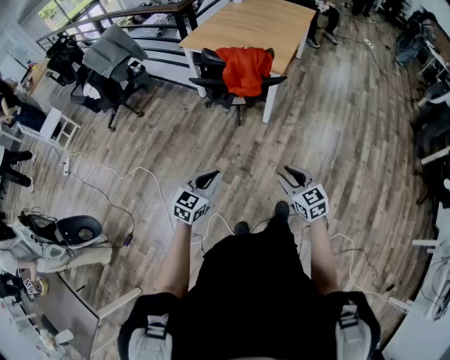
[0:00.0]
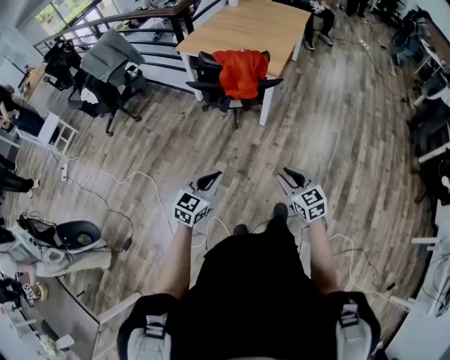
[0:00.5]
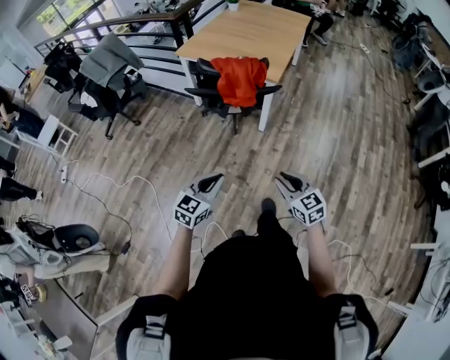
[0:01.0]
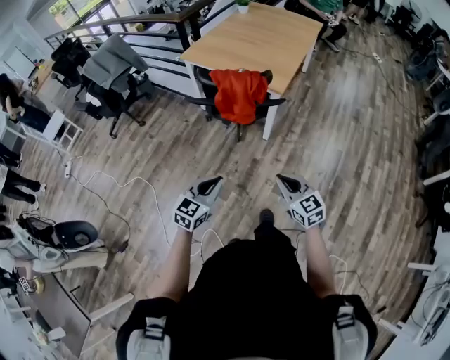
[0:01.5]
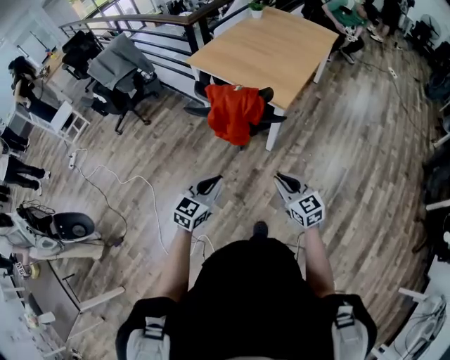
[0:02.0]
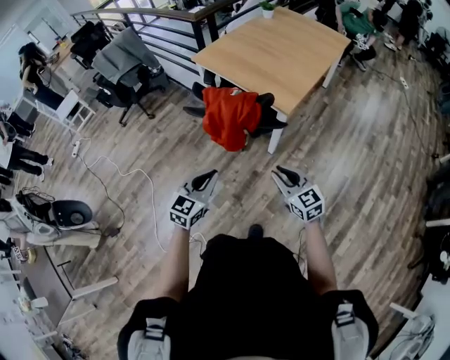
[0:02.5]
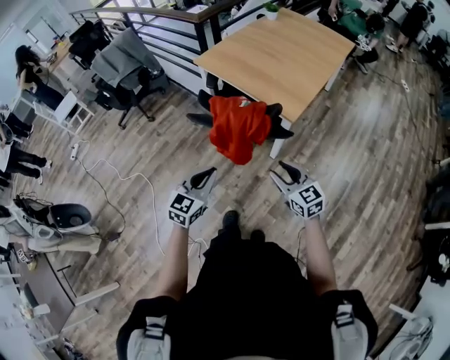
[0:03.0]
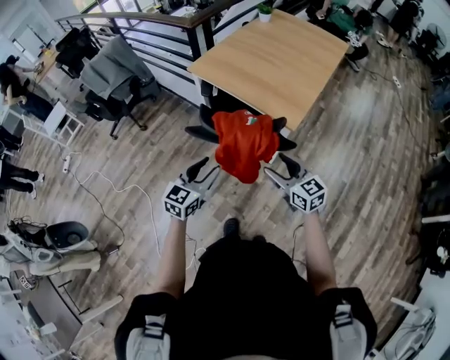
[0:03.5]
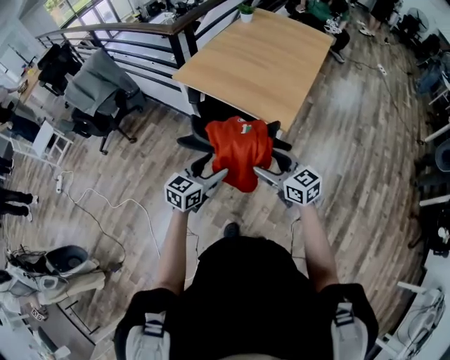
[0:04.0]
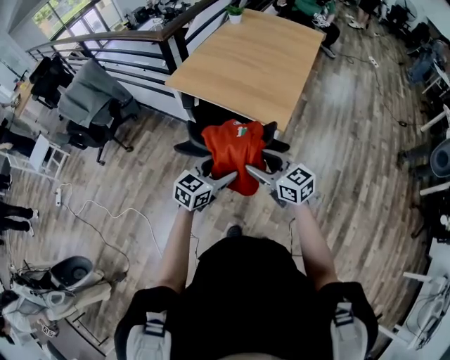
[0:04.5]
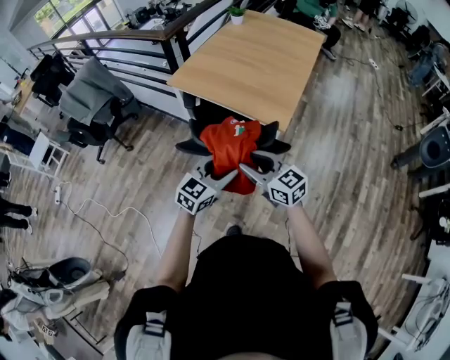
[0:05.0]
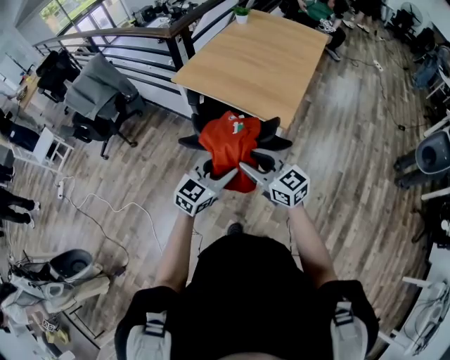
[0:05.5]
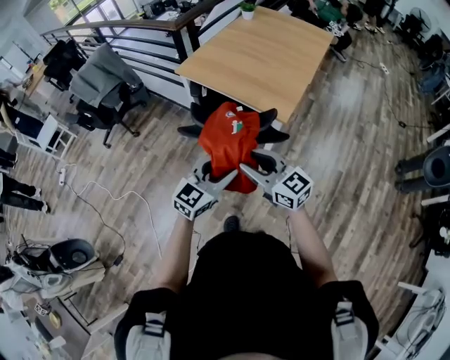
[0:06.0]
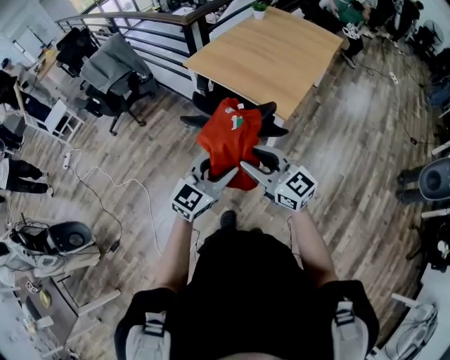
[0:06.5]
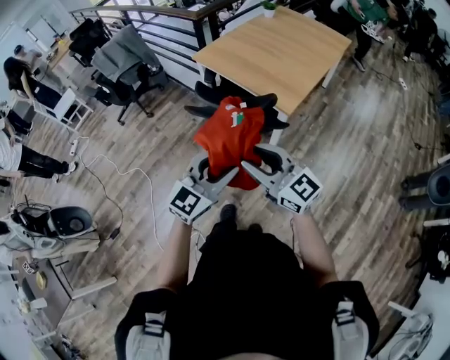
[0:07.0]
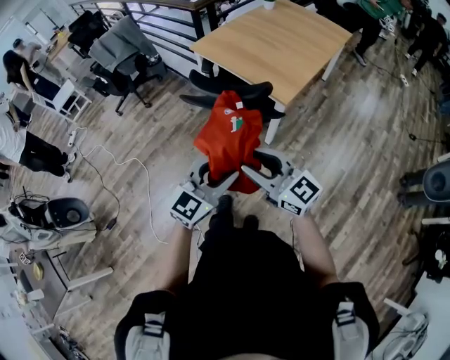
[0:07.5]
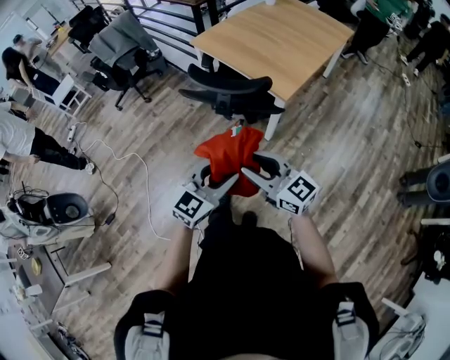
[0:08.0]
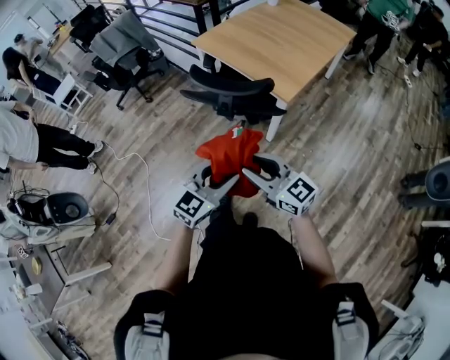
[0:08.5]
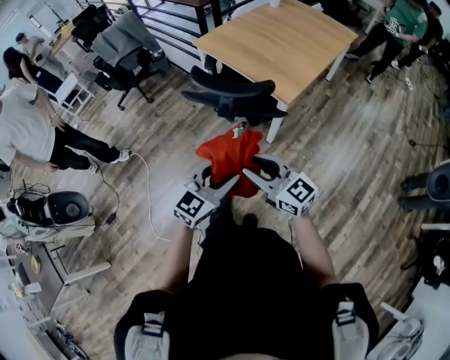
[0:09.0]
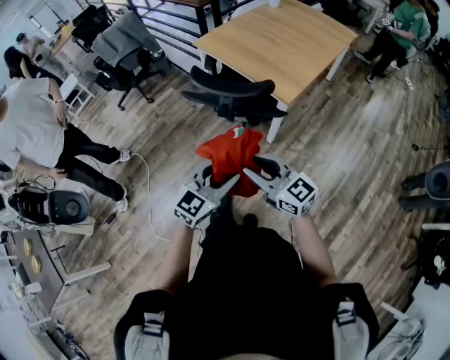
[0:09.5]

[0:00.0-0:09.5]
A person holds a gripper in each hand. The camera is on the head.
0:00.0 to 0:02.0: The left gripper is displaced forward and to the right by roughly 20 cm. The right gripper travels forward by about 20 cm.
0:02.0 to 0:04.0: Both grippers travel together forward, roughly 25 cm. The right gripper opens up. The left gripper opens up.
0:04.0 to 0:05.5: The right gripper shifts some 5 cm to the left, and closes. The left gripper shifts by some 5 cm.
0:05.5 to 0:07.5: Both grippers move backward, some 20 cm.
0:07.5 to 0:09.5: The right gripper heads downward, covering about 5 cm.

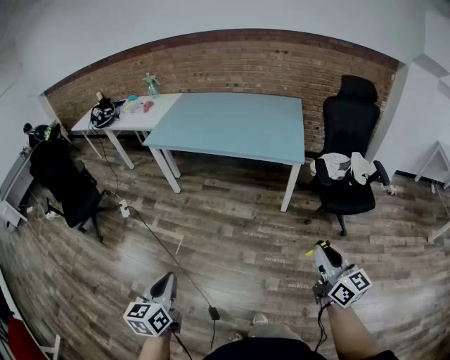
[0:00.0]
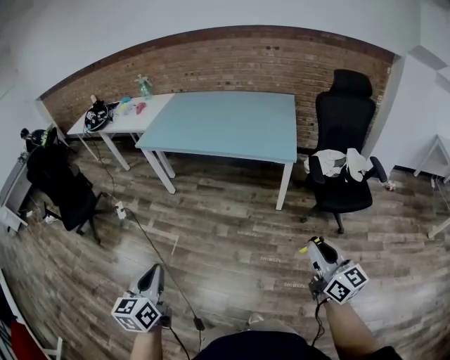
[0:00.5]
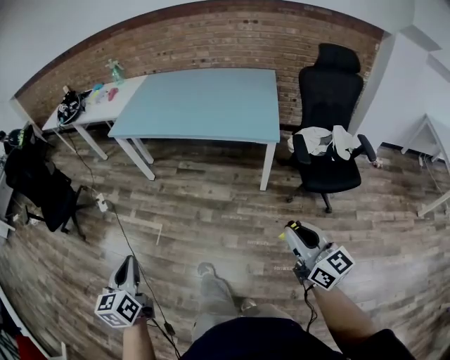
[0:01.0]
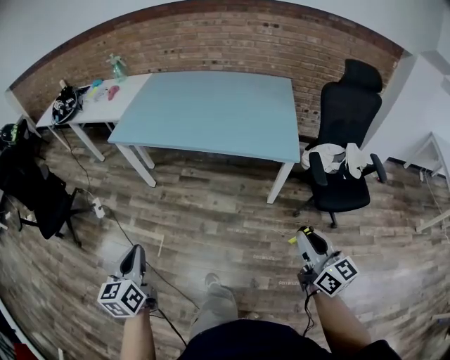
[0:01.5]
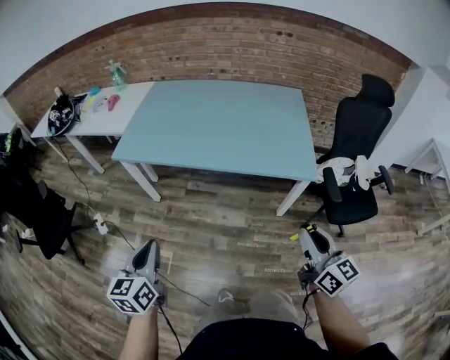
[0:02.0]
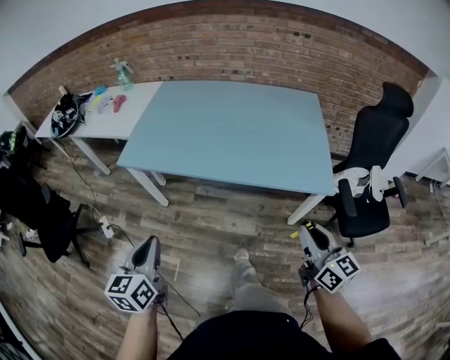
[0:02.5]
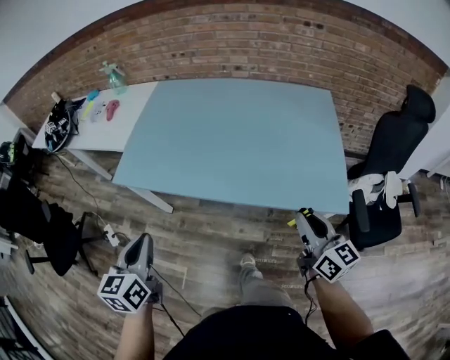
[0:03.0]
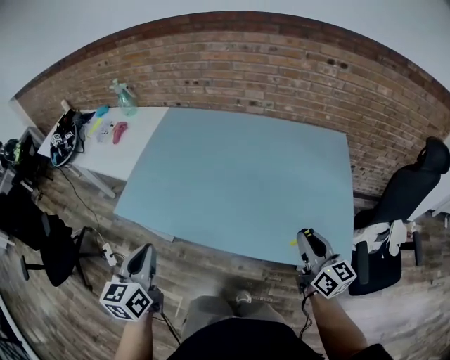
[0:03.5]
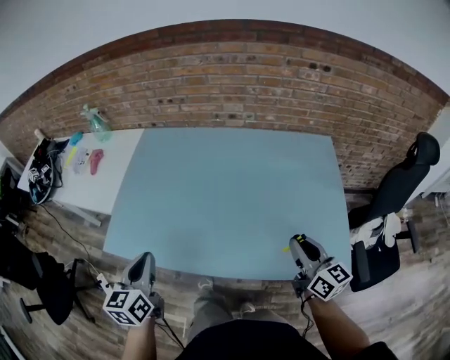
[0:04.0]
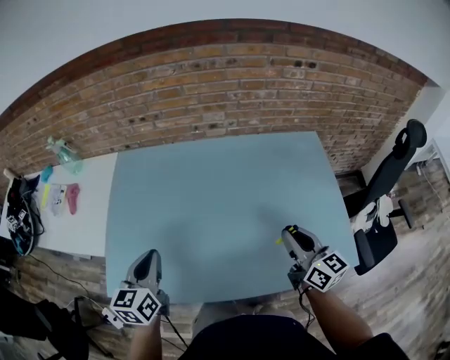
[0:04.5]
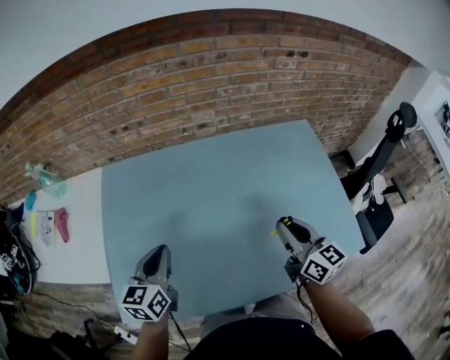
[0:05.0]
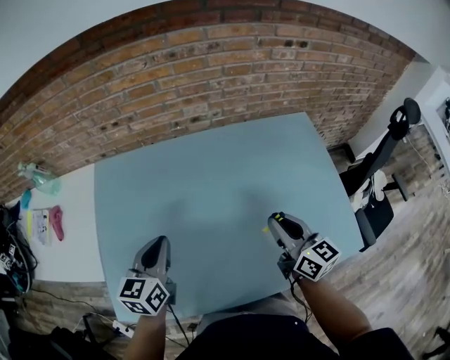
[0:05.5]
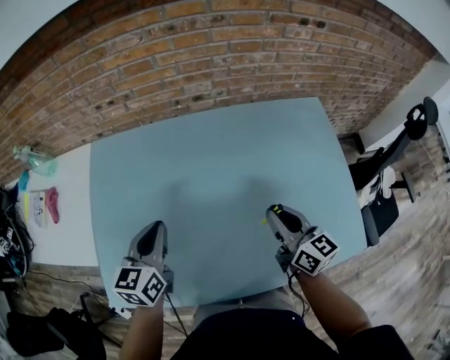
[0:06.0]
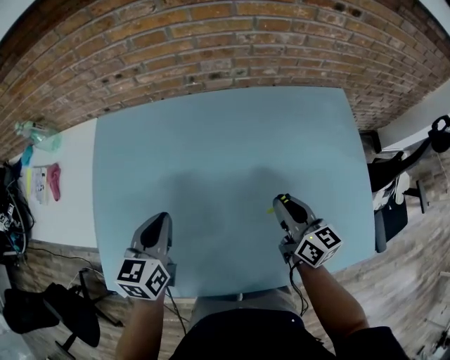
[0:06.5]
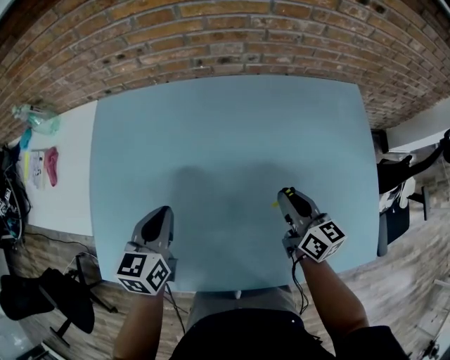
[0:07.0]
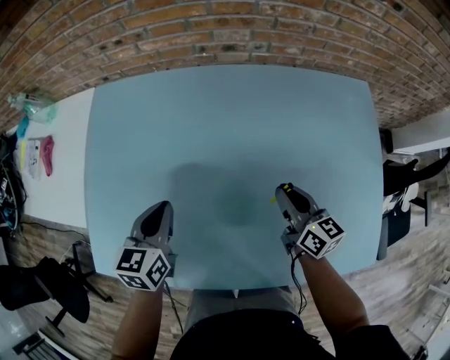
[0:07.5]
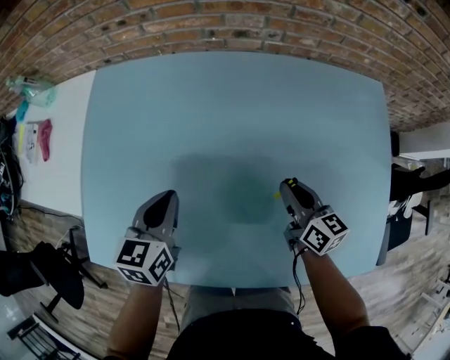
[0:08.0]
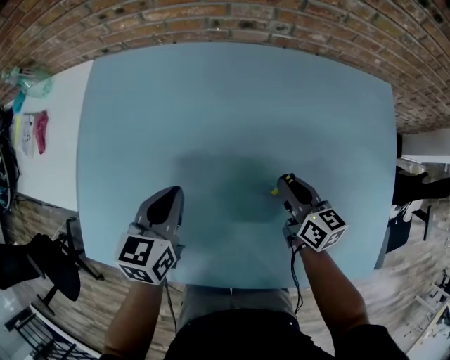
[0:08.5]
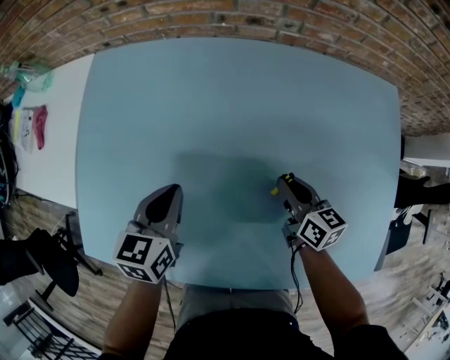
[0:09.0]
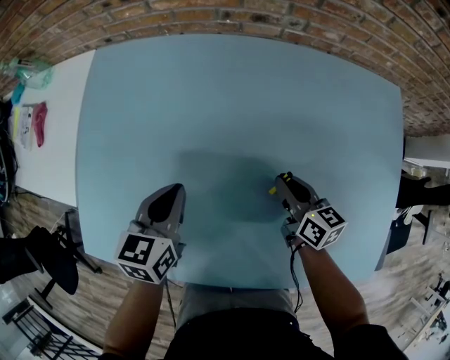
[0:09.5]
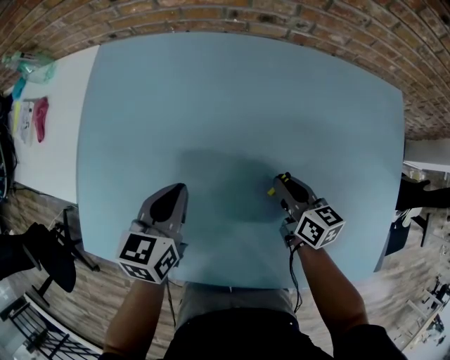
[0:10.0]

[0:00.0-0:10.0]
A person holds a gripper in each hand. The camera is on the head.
0:00.0 to 0:02.0: The grippers both shift forward by some 35 cm.
0:02.0 to 0:04.0: The pair of grippers is taken forward, approximately 50 cm.
0:04.0 to 0:06.0: The right gripper moves forward and to the left, some 20 cm. Meanwhile the left gripper is displaced forward by approximately 30 cm, and swivels roughly 20 degrees.
0:06.0 to 0:08.0: The left gripper shifts some 10 cm downward; the right gripper moves downward and forward, roughly 15 cm.
0:08.0 to 0:10.0: The right gripper moves some 5 cm.

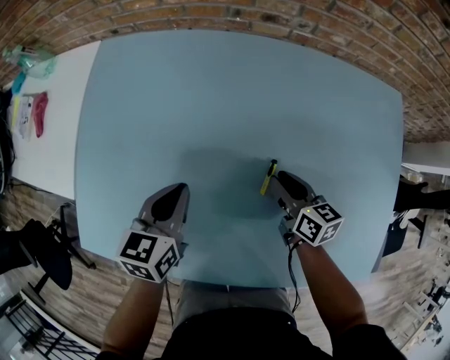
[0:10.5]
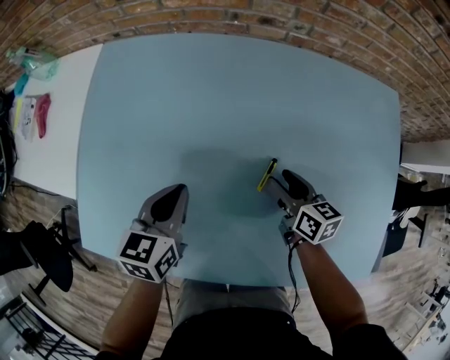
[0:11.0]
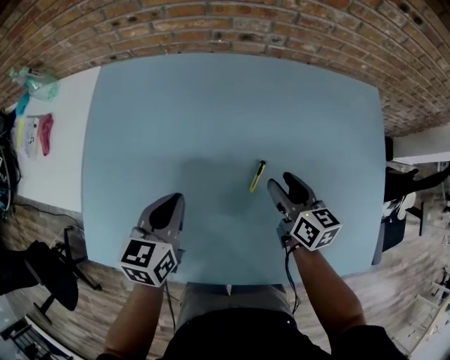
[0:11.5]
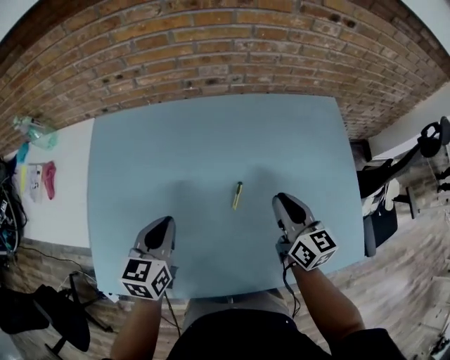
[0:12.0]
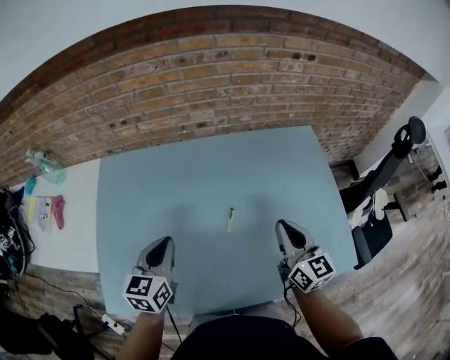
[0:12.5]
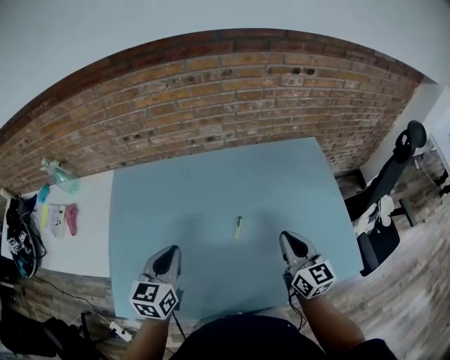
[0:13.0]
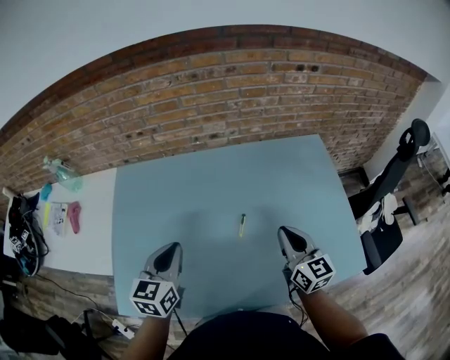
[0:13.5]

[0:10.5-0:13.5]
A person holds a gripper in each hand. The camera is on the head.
0:10.5 to 0:12.0: The left gripper travels upward by about 10 cm, while the right gripper is displaced upward by approximately 15 cm, swivels about 30 degrees, and opens, then closes again.
0:12.0 to 0:13.5: The right gripper shifts roughly 10 cm backward and upward; the left gripper moves upward, about 10 cm.

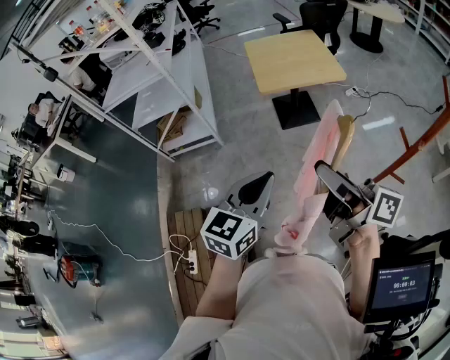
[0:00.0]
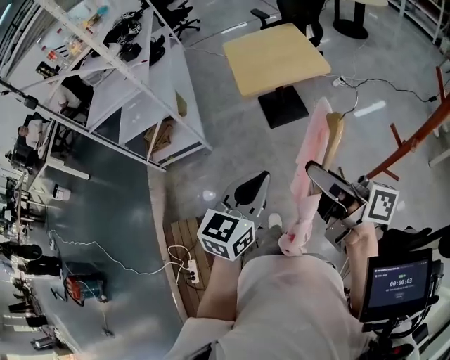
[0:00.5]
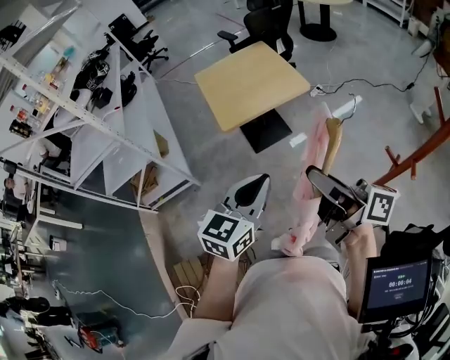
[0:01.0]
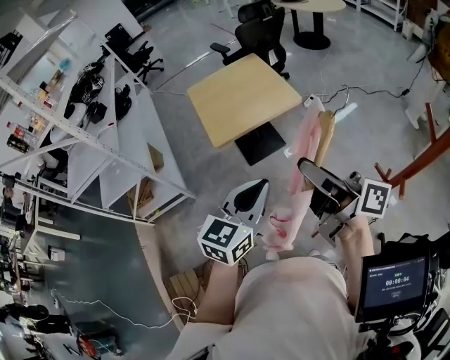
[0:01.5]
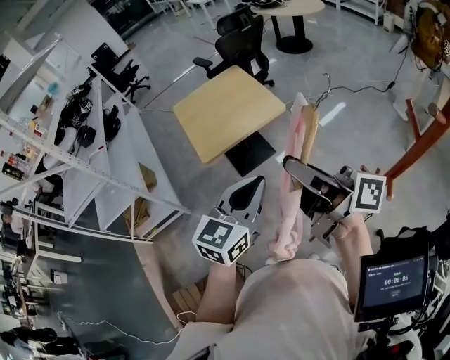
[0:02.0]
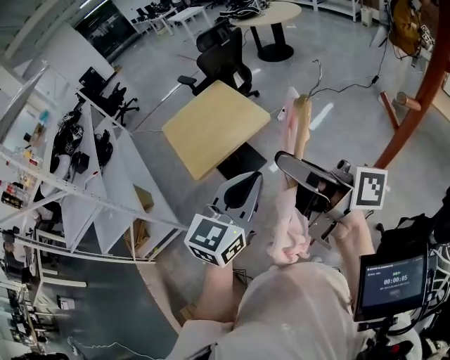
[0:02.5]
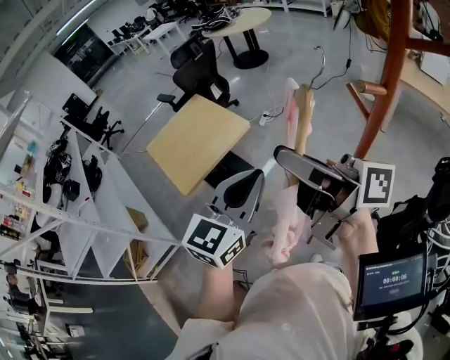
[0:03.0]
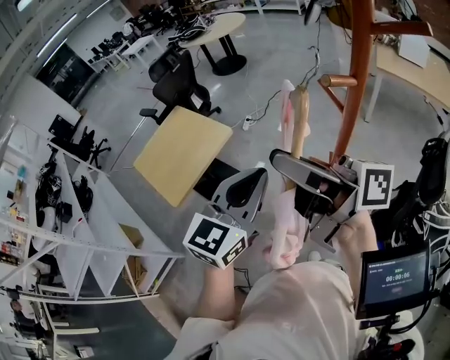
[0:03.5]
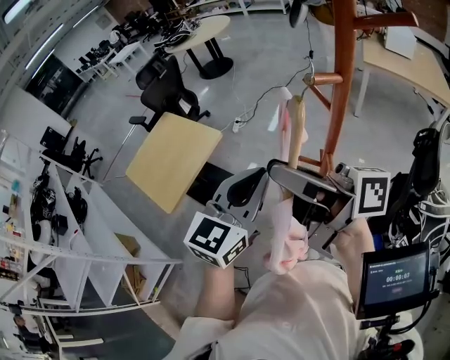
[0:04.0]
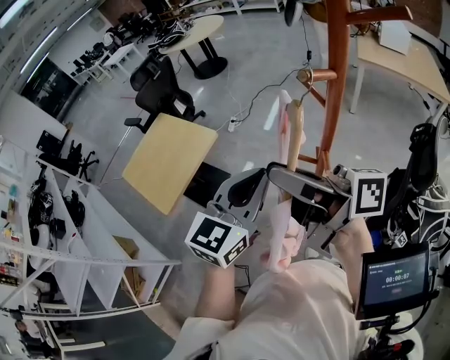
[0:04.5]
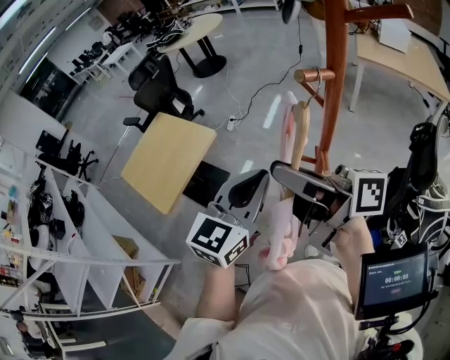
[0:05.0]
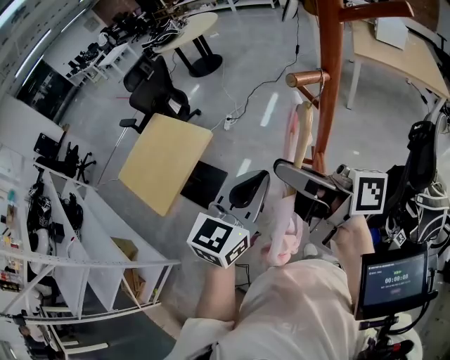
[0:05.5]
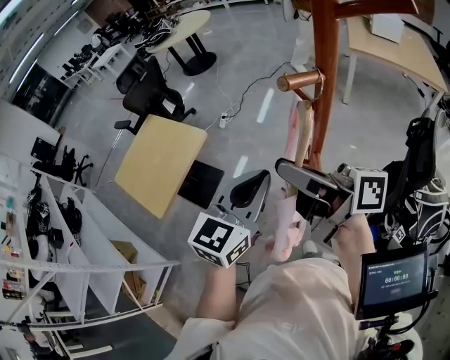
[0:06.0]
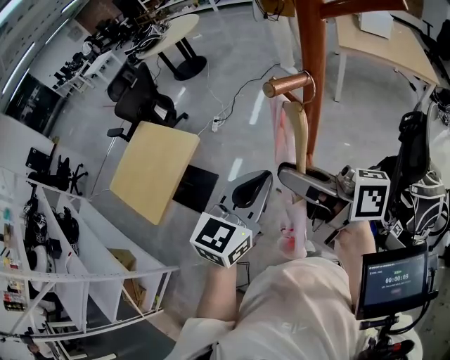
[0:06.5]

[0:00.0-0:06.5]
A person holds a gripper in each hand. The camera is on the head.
0:00.0 to 0:02.0: The two grippers go approximately 30 cm forward and to the right. The left gripper rotates some 20 degrees.
0:02.0 to 0:04.5: The left gripper shifts by some 20 cm, and changes its angle by roughly 30 degrees. Meanwhile the right gripper shifts by roughly 15 cm, and swivels approximately 20 degrees.
0:04.5 to 0:06.5: The two grippers go roughly 5 cm to the right.
